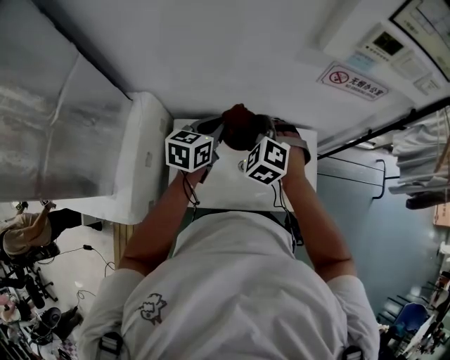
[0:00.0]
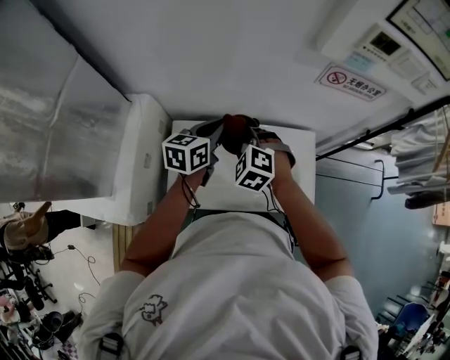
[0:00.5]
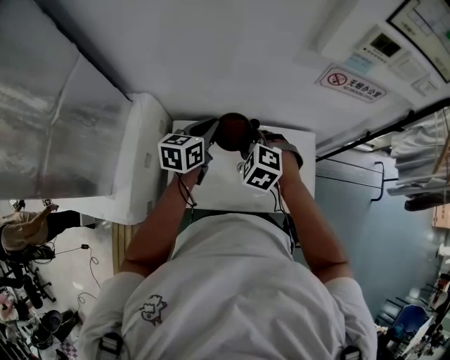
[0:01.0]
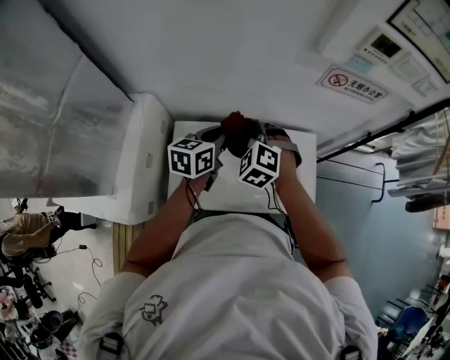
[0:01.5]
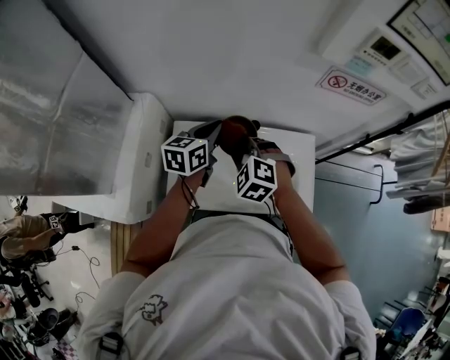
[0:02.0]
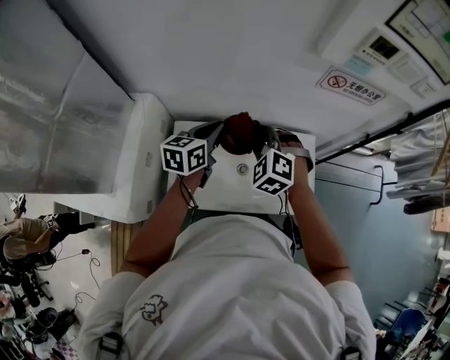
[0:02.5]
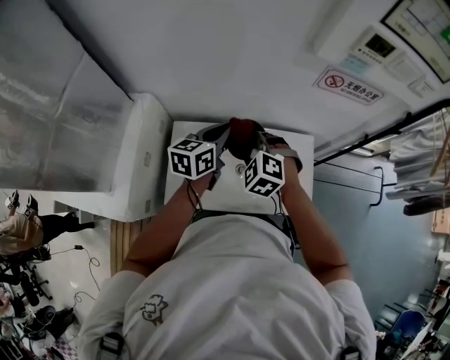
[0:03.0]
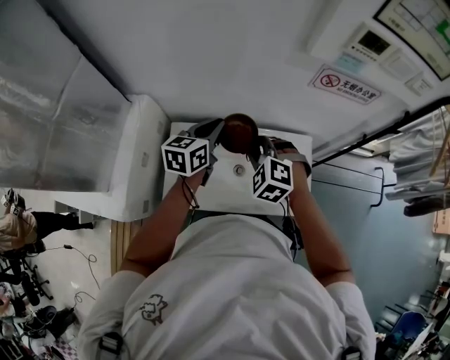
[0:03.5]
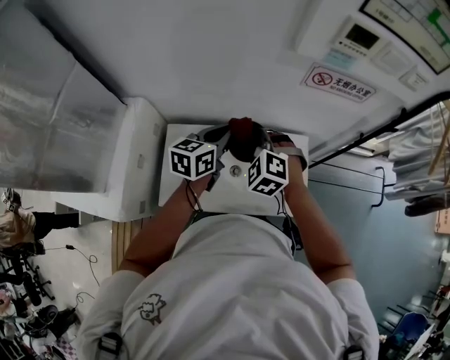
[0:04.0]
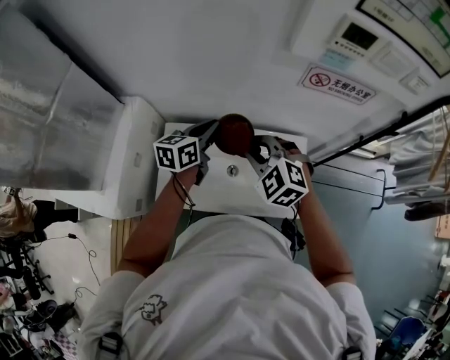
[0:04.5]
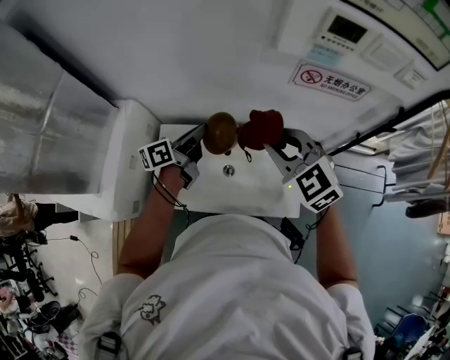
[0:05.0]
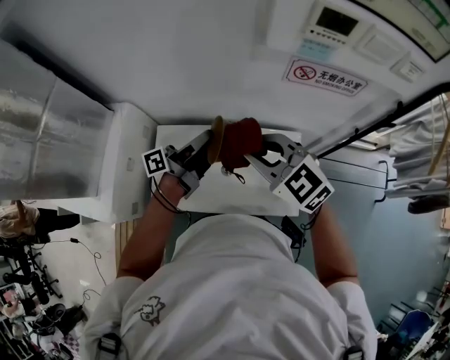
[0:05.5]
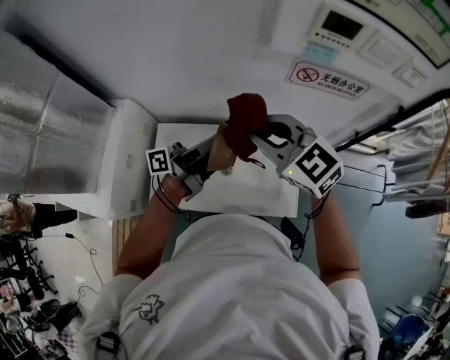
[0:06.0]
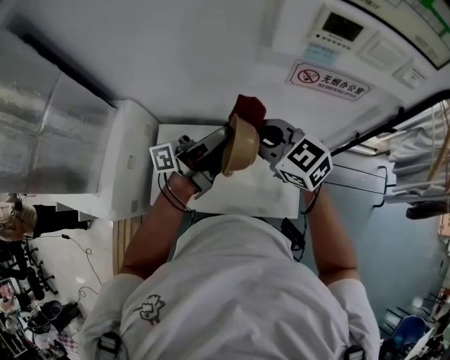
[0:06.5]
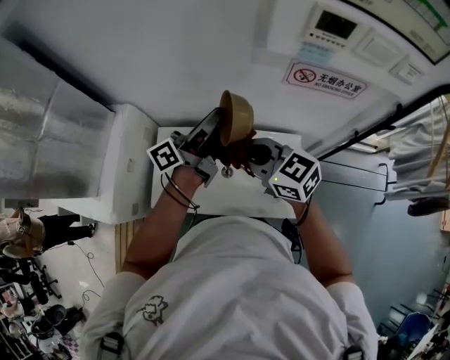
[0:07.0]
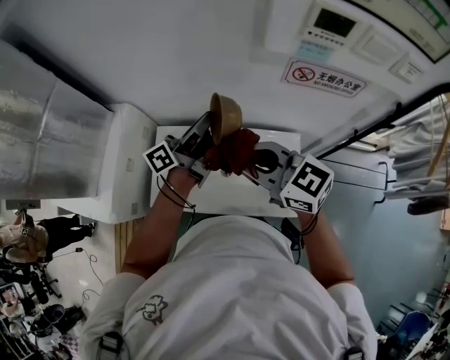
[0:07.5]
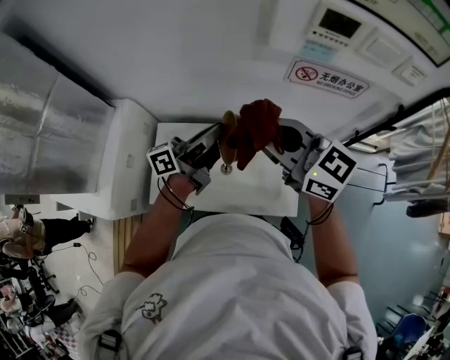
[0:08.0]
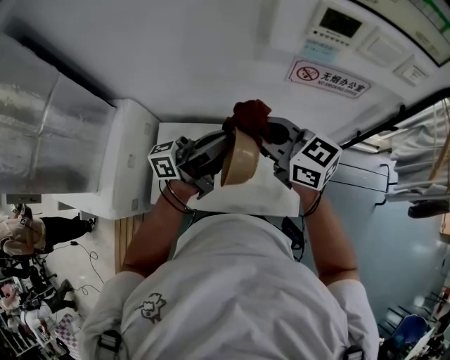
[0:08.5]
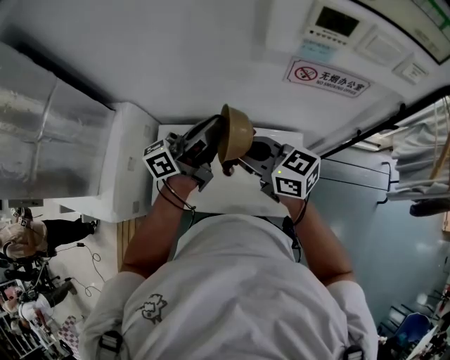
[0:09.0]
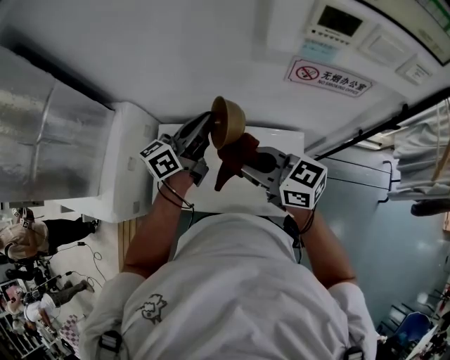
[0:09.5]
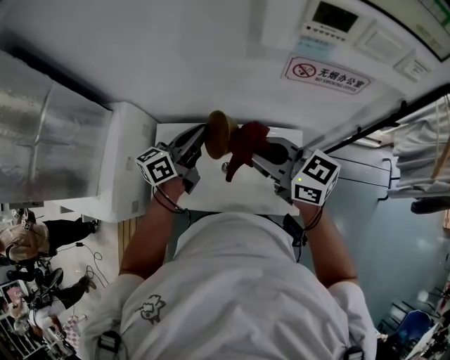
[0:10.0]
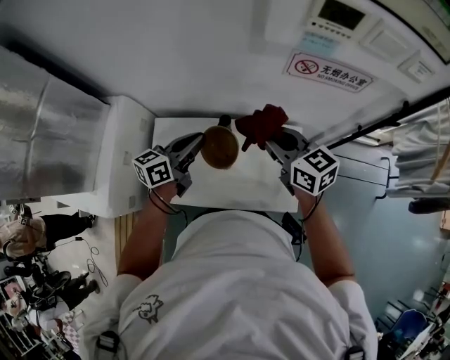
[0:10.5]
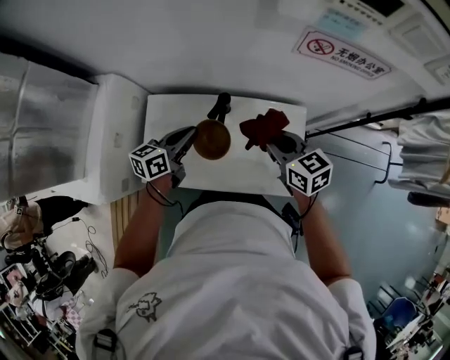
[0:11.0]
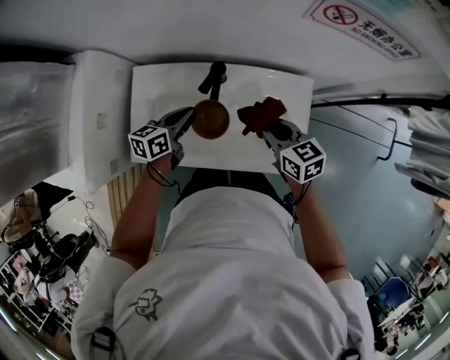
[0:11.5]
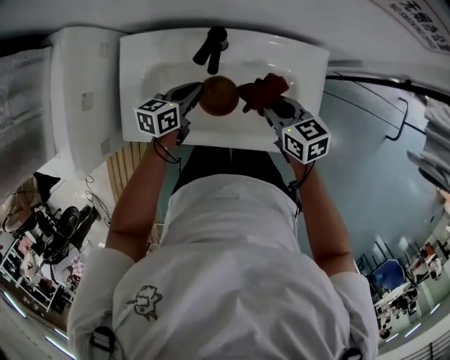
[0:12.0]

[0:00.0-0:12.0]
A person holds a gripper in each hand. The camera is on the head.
0:00.0 to 0:02.0: The right gripper moves backward, approximately 5 cm.
0:02.0 to 0:04.0: The grippers both shift to the right by roughly 10 cm.
0:04.0 to 0:06.0: The right gripper heads upward and to the right, covering about 15 cm, and changes its angle by about 40 degrees; the left gripper shifts by some 5 cm, and points its fingers about 40 degrees further upward.
0:06.0 to 0:08.0: The right gripper turns by some 20 degrees.
0:08.0 to 0:10.0: The right gripper goes roughly 5 cm downward. The left gripper moves roughly 5 cm, and rotates approximately 30 degrees.
0:10.0 to 0:12.0: The two grippers go approximately 30 cm downward. The left gripper tilts its fingers about 30 degrees downward; the right gripper rotates approximately 40 degrees.

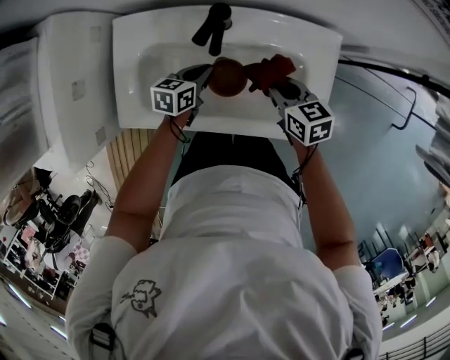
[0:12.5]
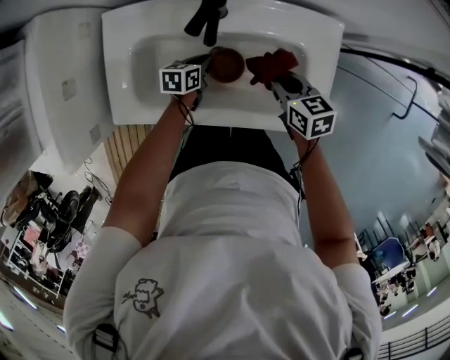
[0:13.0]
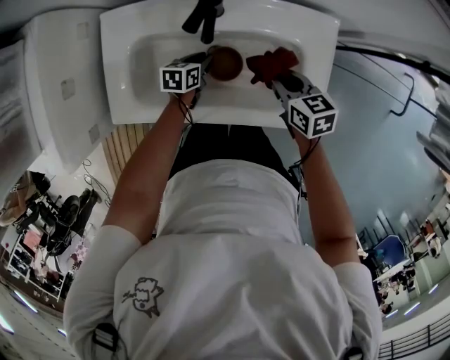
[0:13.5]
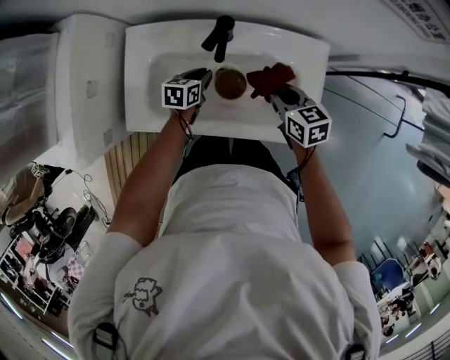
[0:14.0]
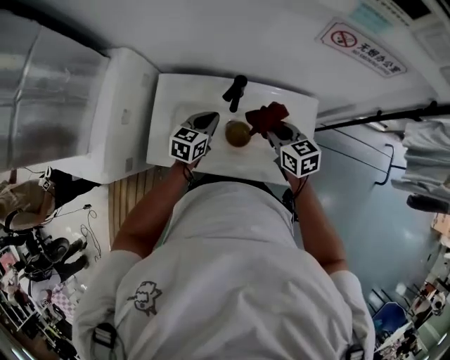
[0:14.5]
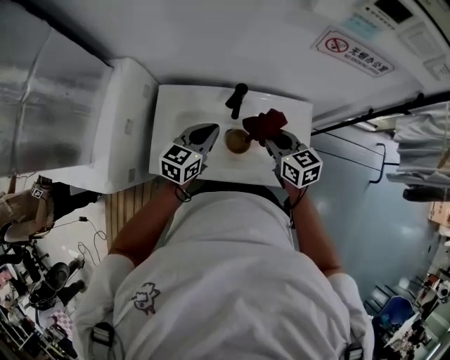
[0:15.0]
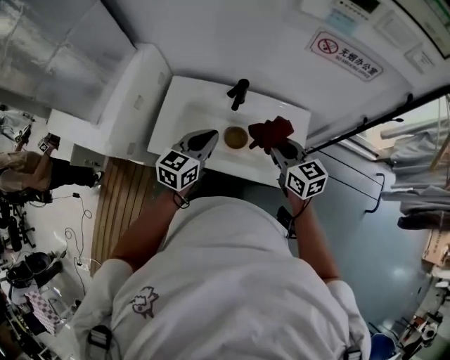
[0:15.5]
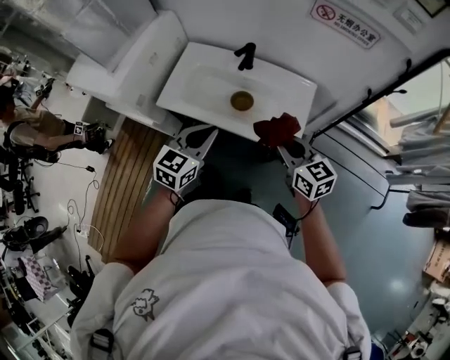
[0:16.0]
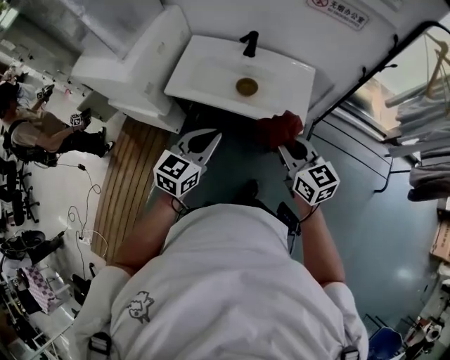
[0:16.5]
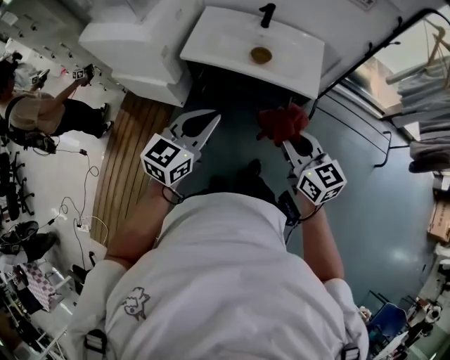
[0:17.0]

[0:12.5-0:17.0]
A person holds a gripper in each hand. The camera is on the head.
0:12.5 to 0:14.5: The two grippers go about 15 cm upward. The left gripper turns by approximately 20 degrees.
0:14.5 to 0:17.0: The pair of grippers is taken backward, roughly 50 cm. The left gripper changes its angle by about 20 degrees.

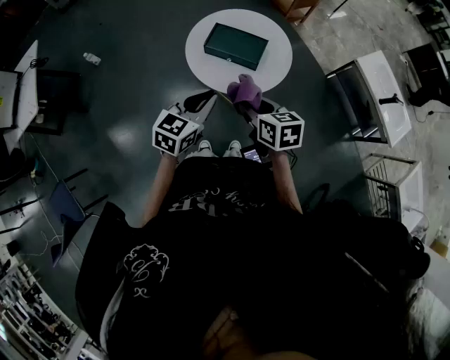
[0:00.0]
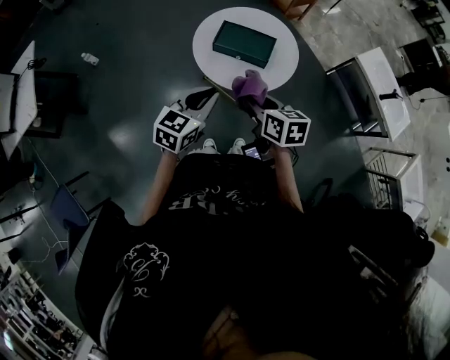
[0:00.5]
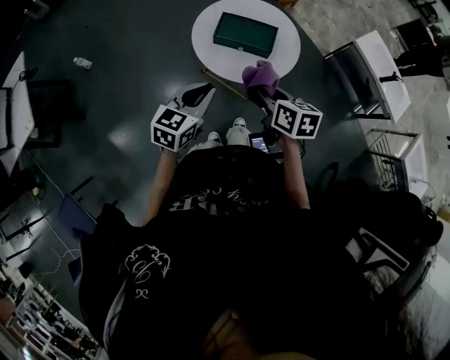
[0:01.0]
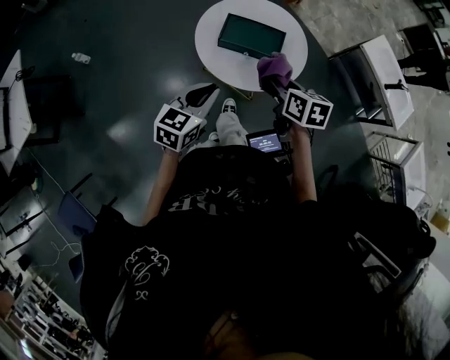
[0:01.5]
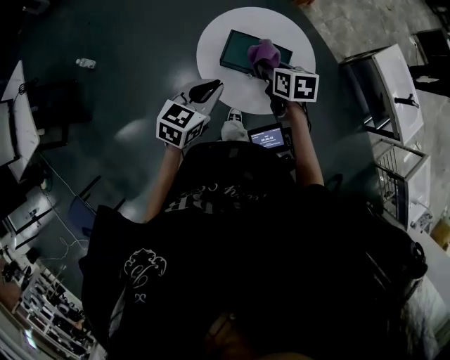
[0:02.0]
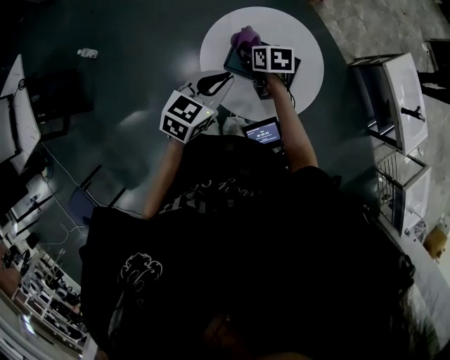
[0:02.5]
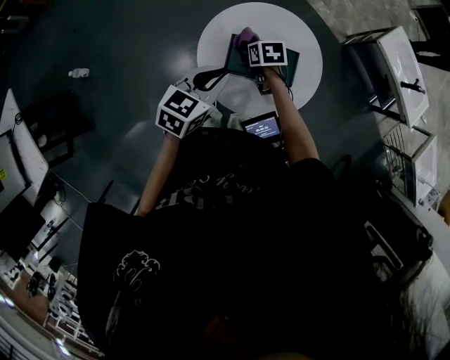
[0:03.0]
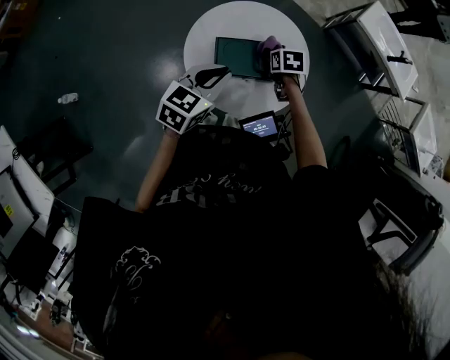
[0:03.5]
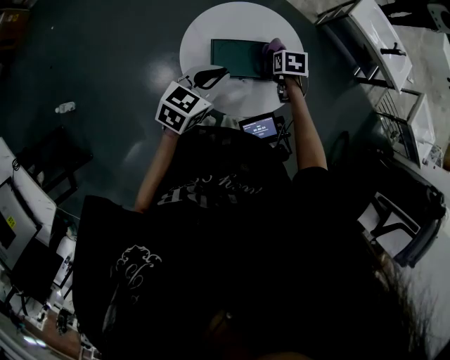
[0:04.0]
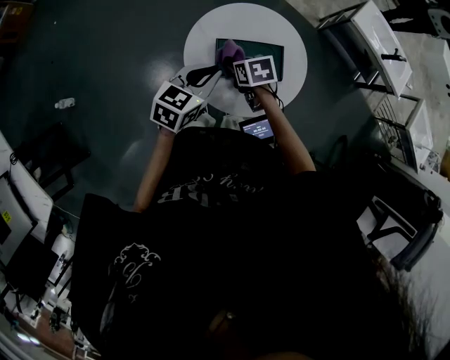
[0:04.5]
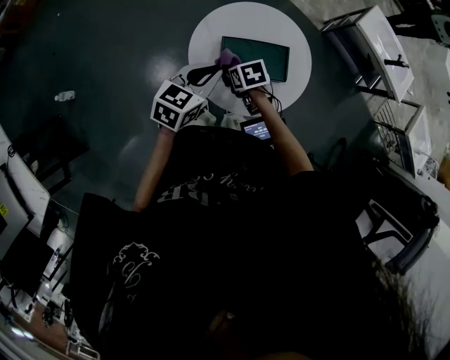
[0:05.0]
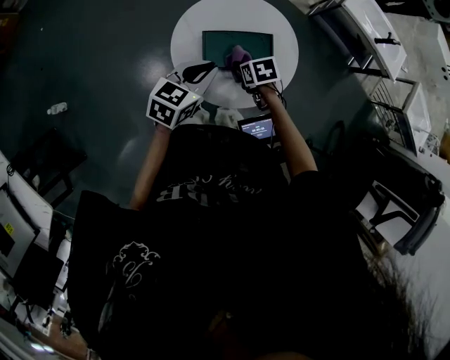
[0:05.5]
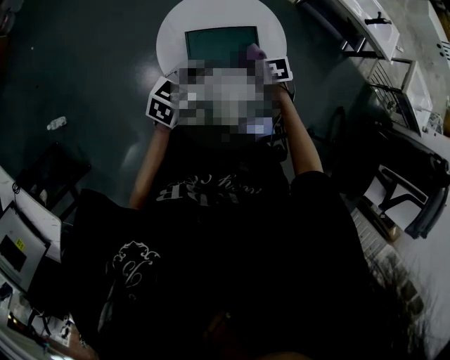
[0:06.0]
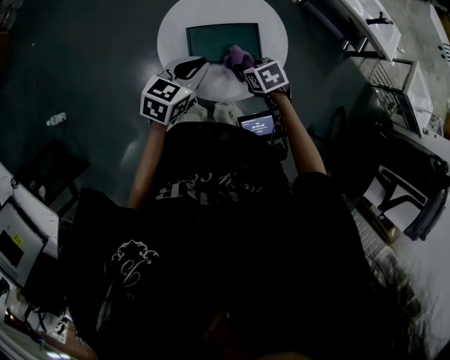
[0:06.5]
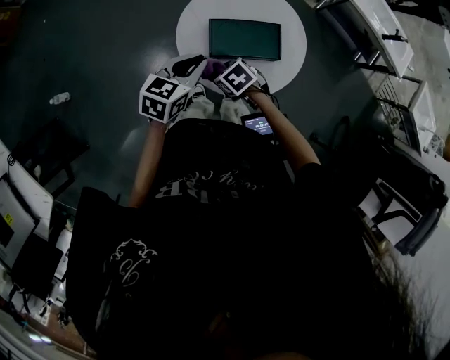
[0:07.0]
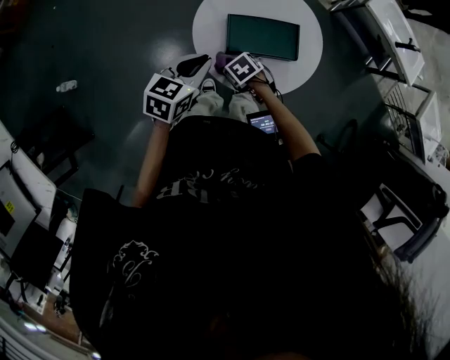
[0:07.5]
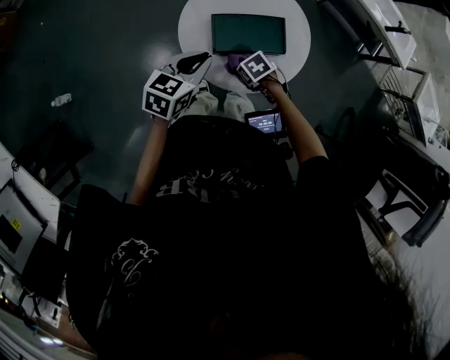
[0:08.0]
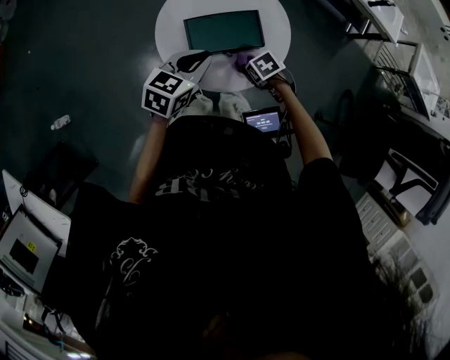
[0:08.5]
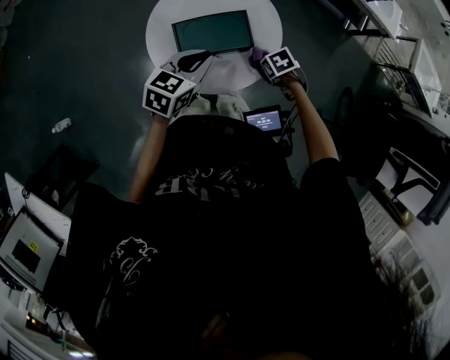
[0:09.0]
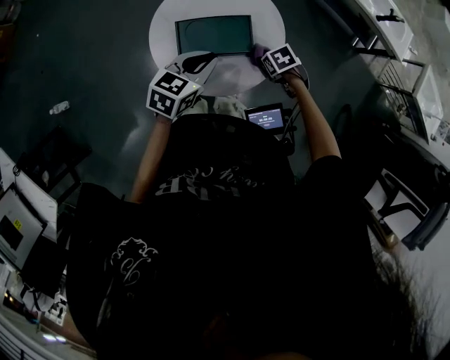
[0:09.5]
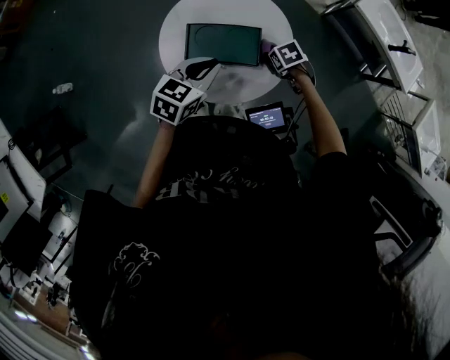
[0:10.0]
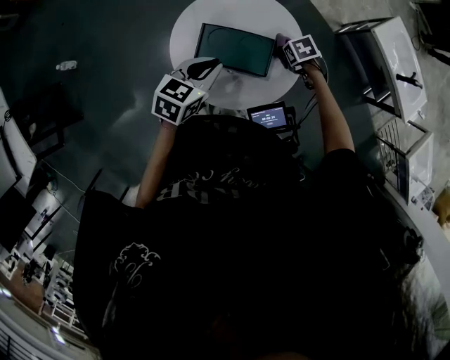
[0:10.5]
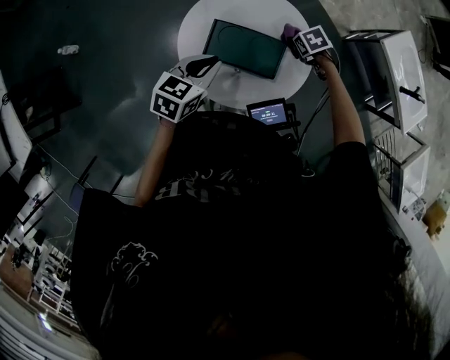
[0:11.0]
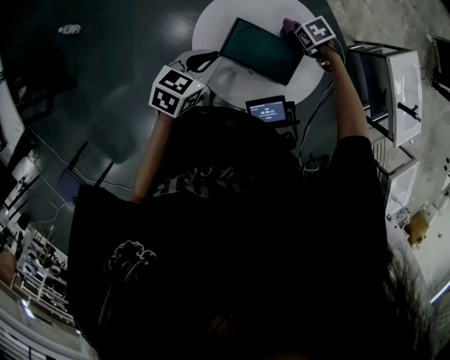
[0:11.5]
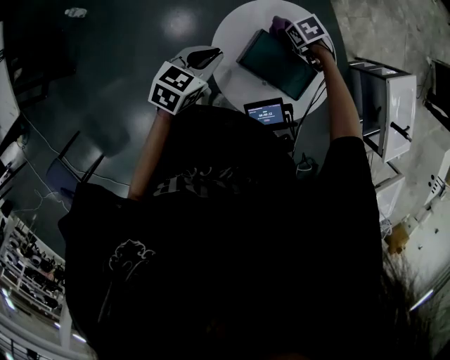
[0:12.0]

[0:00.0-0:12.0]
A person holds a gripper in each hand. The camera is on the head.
0:00.0 to 0:02.0: The left gripper heads forward and to the left, covering about 20 cm. Meanwhile the right gripper heads forward, covering some 25 cm.
0:02.0 to 0:04.0: The left gripper changes place by some 10 cm, and swivels approximately 30 degrees. The right gripper shifts approximately 10 cm downward, and swivels some 40 degrees.
0:04.0 to 0:06.0: The right gripper shifts approximately 10 cm backward, and reaches some 15 cm to the left, then returns.
0:06.0 to 0:08.0: The right gripper moves roughly 15 cm, and turns by roughly 30 degrees. Meanwhile the left gripper moves roughly 10 cm.
0:08.0 to 0:10.0: The left gripper shifts by about 15 cm. Meanwhile the right gripper changes place by about 25 cm.
0:10.0 to 0:12.0: The left gripper shifts by about 20 cm, and turns by roughly 20 degrees, while the right gripper moves approximately 25 cm, and turns by approximately 30 degrees.
